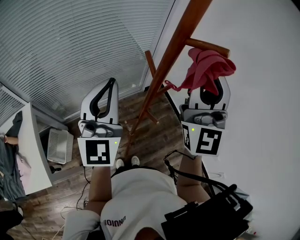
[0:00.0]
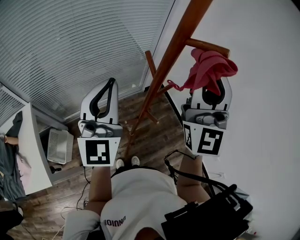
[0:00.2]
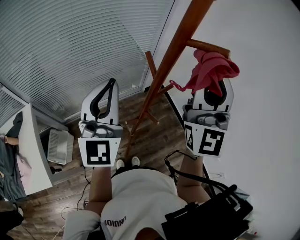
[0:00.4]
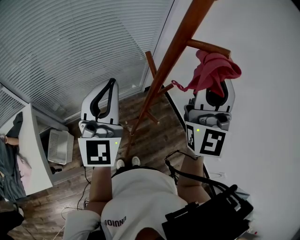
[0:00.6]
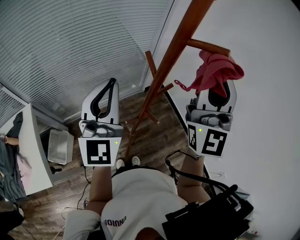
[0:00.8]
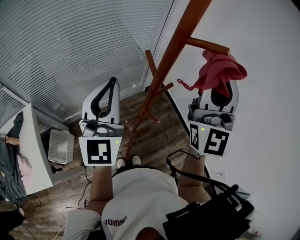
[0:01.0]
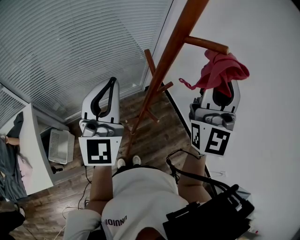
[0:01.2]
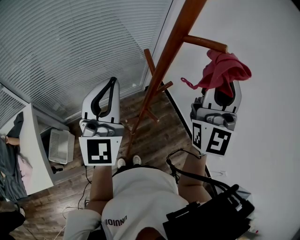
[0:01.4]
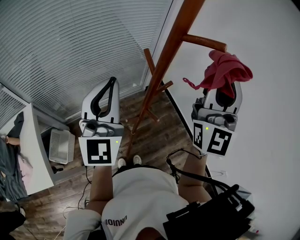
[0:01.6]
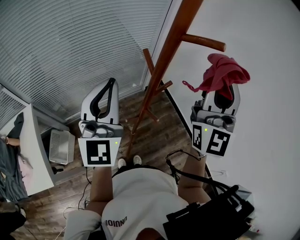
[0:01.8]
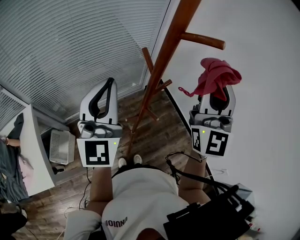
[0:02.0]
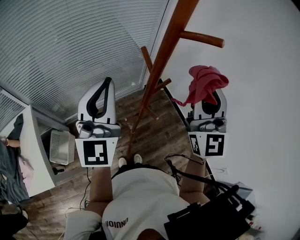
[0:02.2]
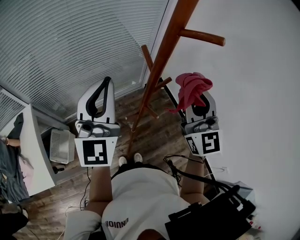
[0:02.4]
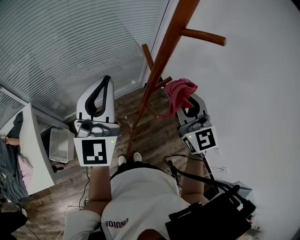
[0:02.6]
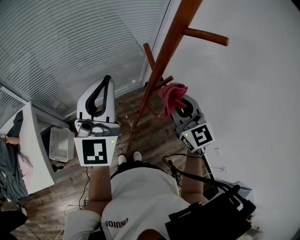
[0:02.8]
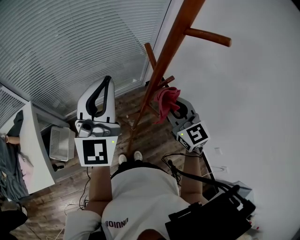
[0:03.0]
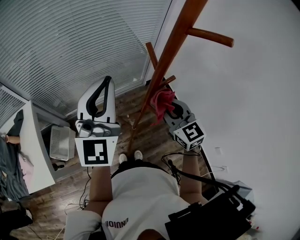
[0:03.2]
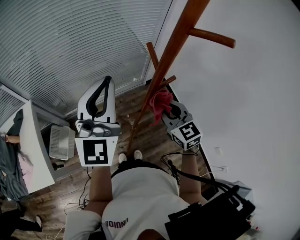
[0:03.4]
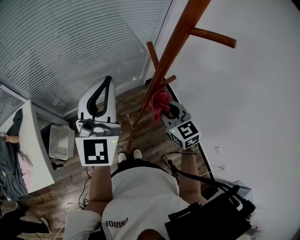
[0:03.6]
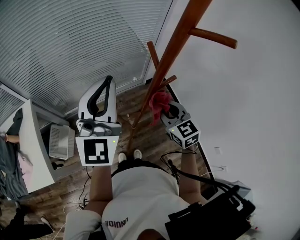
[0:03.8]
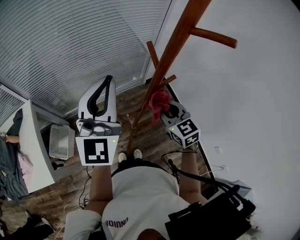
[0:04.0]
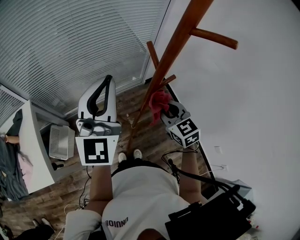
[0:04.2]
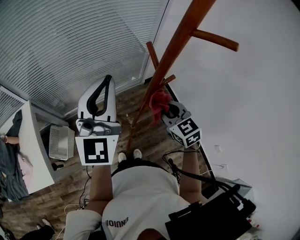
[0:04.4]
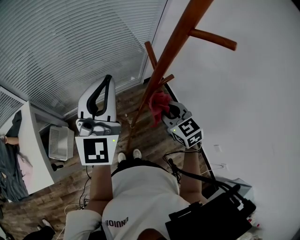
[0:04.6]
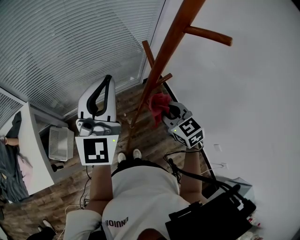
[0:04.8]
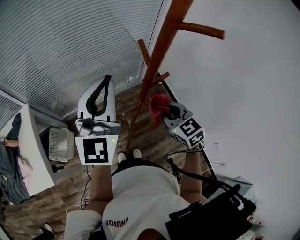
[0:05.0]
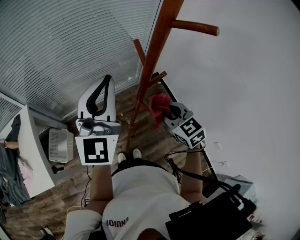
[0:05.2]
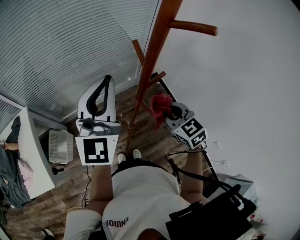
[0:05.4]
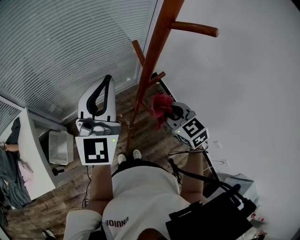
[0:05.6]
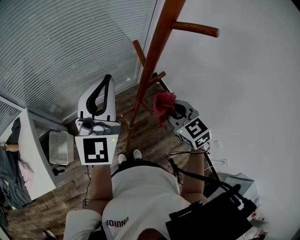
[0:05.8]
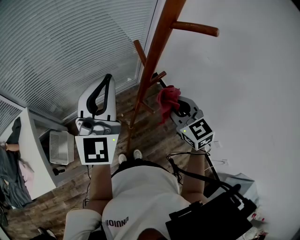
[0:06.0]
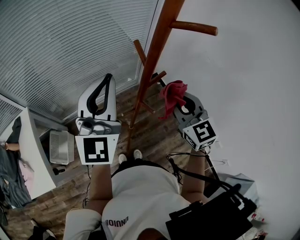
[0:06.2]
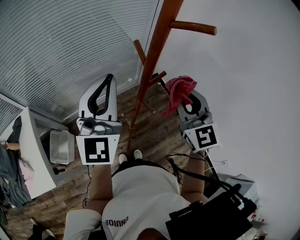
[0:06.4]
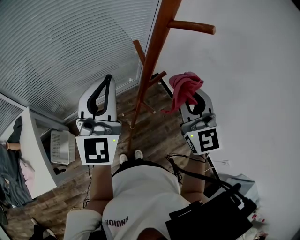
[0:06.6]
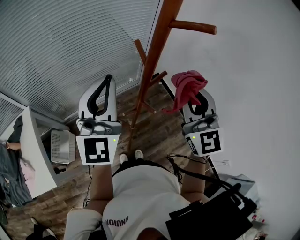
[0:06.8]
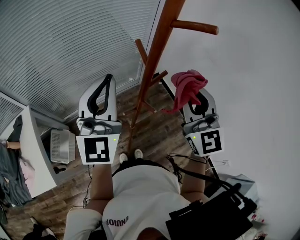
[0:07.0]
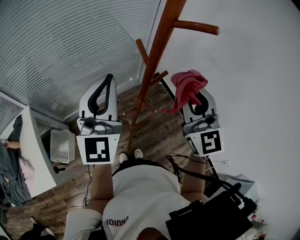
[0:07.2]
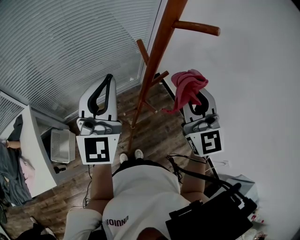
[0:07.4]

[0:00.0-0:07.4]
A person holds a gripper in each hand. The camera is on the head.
0:00.0 to 0:01.4: The grippers move only a little.
0:01.4 to 0:03.0: The right gripper moves downward, approximately 25 cm, and angles its fingers downward, by about 40 degrees.
0:03.0 to 0:04.4: The right gripper heads downward, covering roughly 5 cm.
0:04.4 to 0:06.0: The right gripper goes roughly 5 cm upward.
0:06.0 to 0:07.4: The right gripper shifts roughly 15 cm upward, and turns by about 30 degrees.

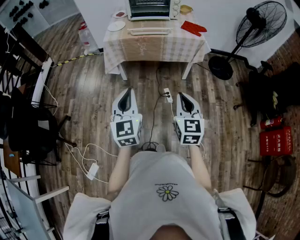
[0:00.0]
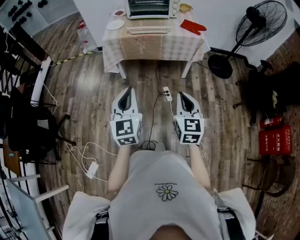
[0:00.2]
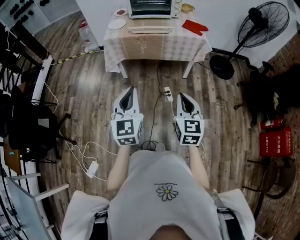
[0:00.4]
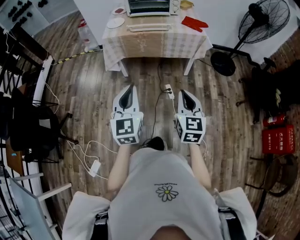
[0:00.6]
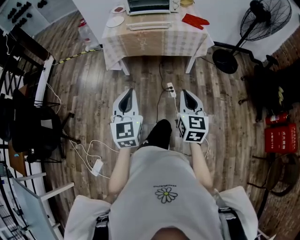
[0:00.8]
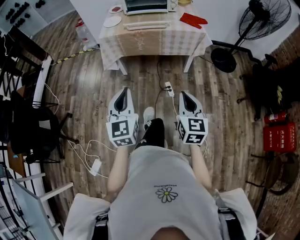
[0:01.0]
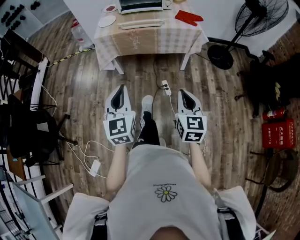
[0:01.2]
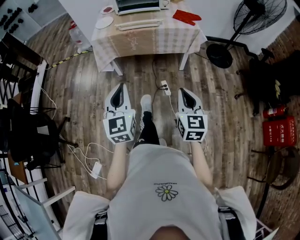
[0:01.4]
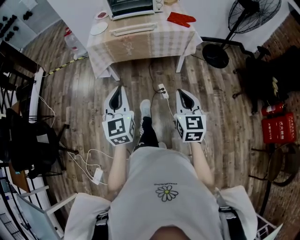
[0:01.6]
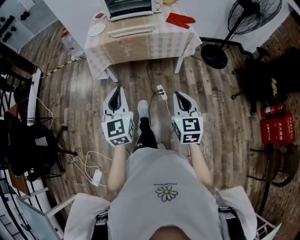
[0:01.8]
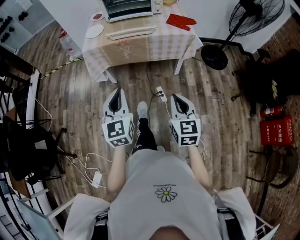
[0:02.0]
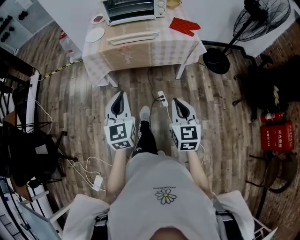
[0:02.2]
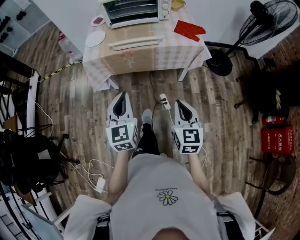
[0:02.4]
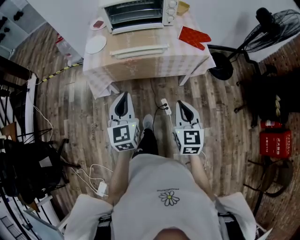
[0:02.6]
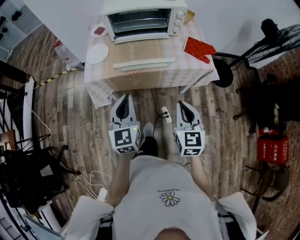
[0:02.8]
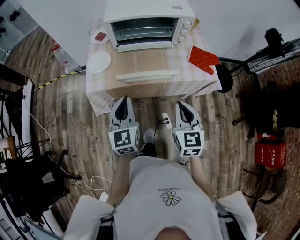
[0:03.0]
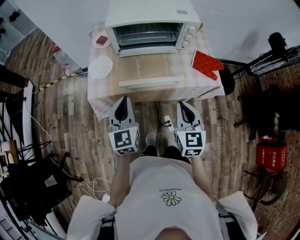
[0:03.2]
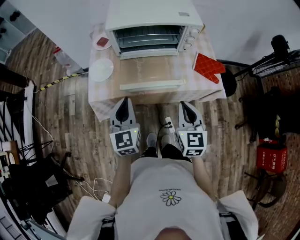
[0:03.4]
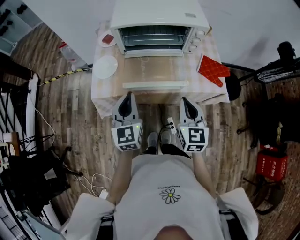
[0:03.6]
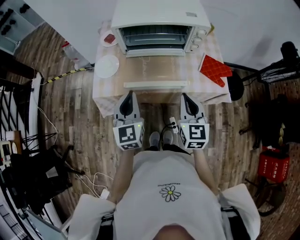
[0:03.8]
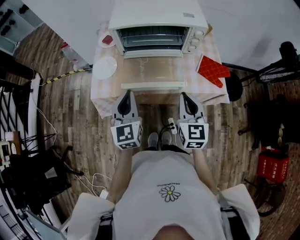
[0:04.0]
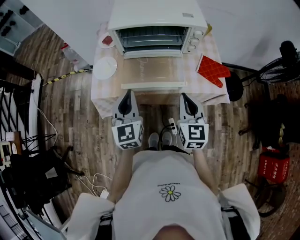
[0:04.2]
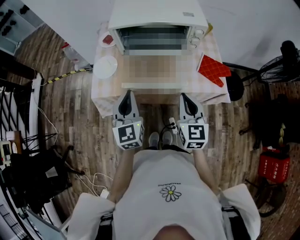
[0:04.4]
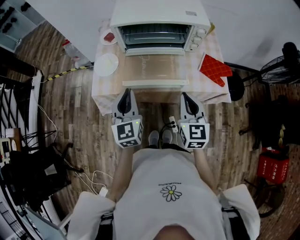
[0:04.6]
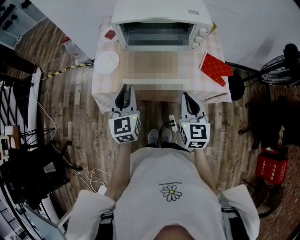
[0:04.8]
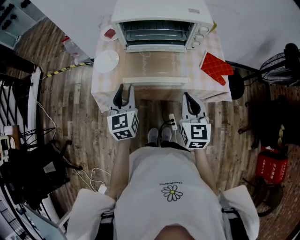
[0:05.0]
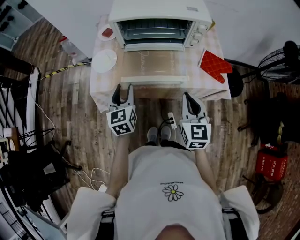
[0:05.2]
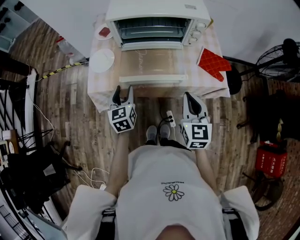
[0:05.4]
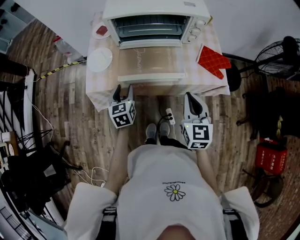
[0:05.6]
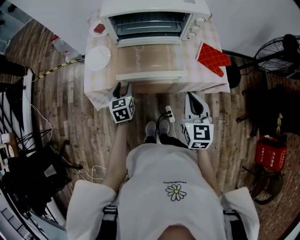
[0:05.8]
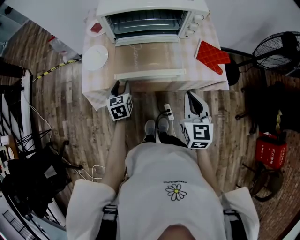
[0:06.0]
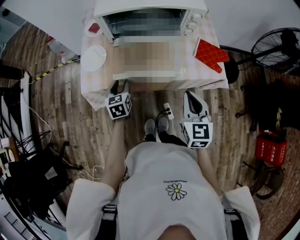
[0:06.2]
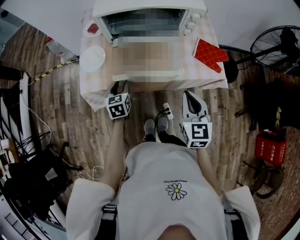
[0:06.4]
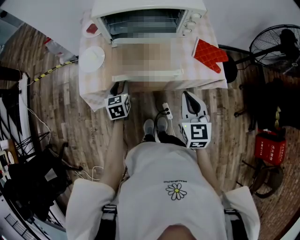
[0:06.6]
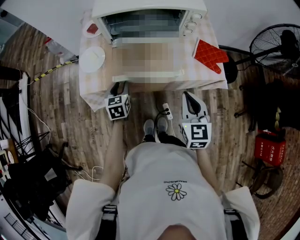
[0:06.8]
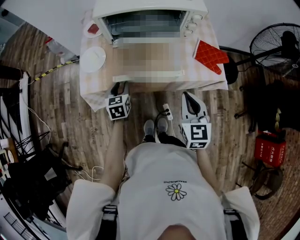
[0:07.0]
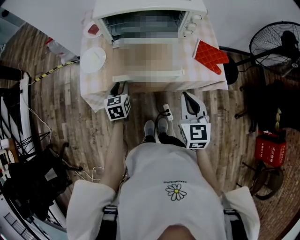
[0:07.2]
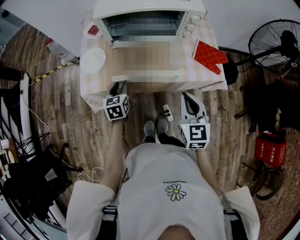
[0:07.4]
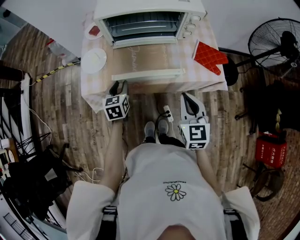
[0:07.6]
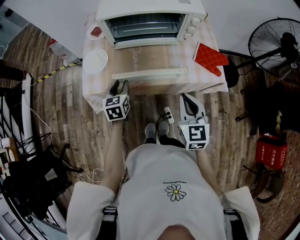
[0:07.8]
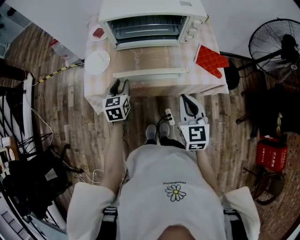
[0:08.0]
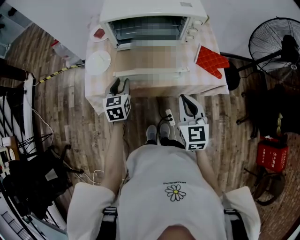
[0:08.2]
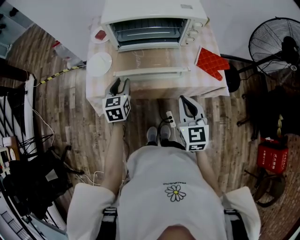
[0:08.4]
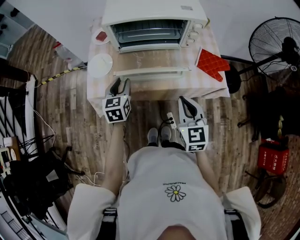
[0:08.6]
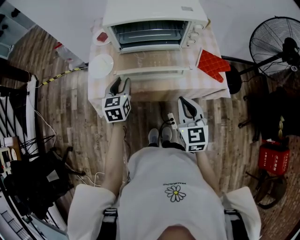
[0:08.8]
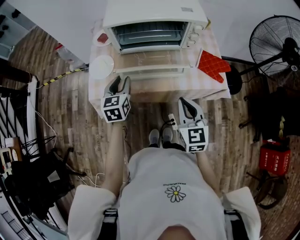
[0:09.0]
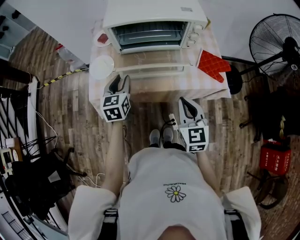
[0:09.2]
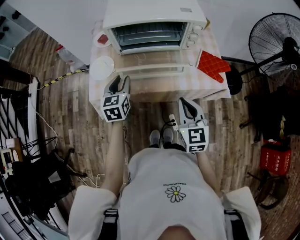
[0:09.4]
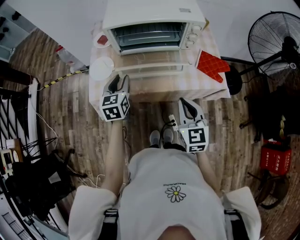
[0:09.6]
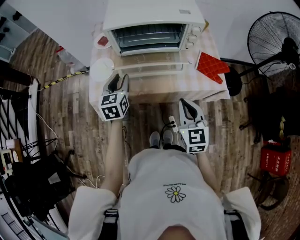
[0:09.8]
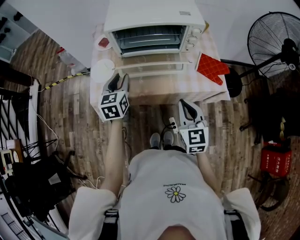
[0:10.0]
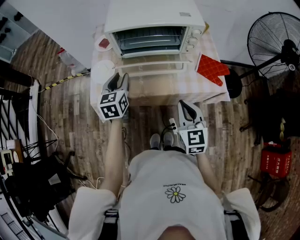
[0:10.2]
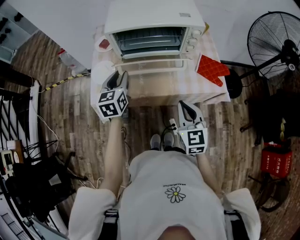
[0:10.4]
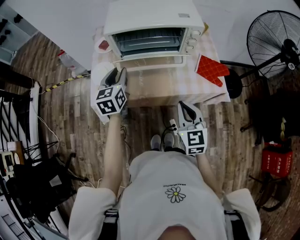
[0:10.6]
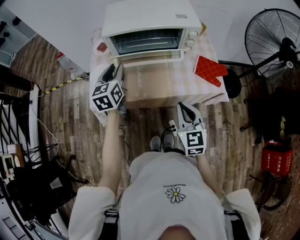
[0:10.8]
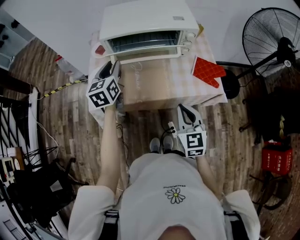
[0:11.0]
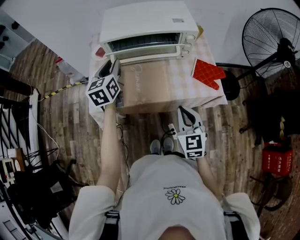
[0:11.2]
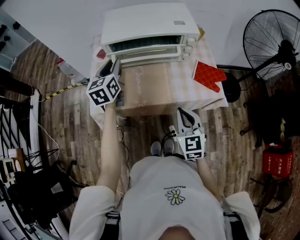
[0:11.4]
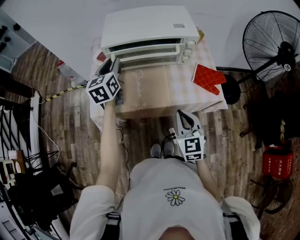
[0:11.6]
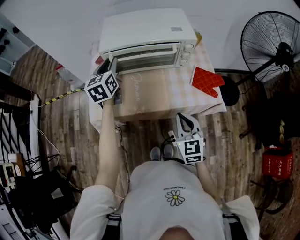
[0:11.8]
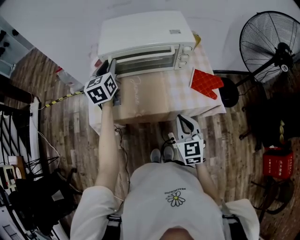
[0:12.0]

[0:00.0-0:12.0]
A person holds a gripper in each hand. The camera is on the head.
0:00.0 to 0:01.6: The right gripper moves about 5 cm; the left gripper moves forward, roughly 5 cm.
0:01.6 to 0:03.0: Both grippers move forward, roughly 40 cm.
0:03.0 to 0:04.4: Both grippers travel together forward, about 10 cm.
0:04.4 to 0:06.0: The left gripper heads downward, covering about 20 cm, rotates roughly 30 degrees, and opens its fingers.
0:06.0 to 0:07.6: The grippers make only small movements.
0:07.6 to 0:09.0: The left gripper goes about 10 cm upward.
0:09.0 to 0:10.4: The left gripper moves approximately 5 cm.
0:10.4 to 0:12.0: The left gripper travels forward and upward by roughly 15 cm.

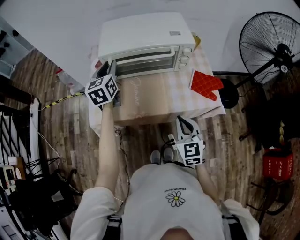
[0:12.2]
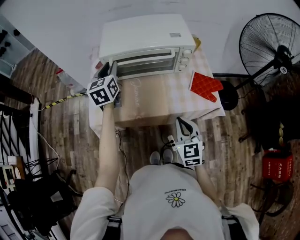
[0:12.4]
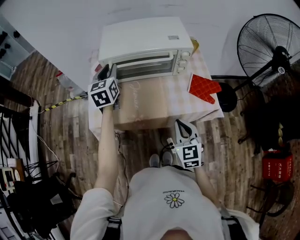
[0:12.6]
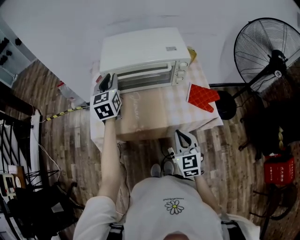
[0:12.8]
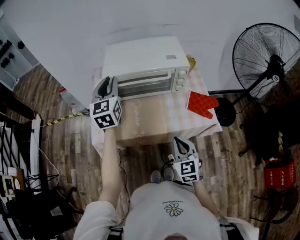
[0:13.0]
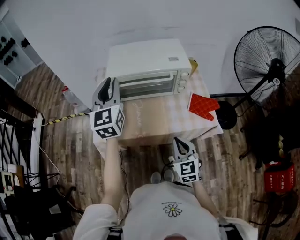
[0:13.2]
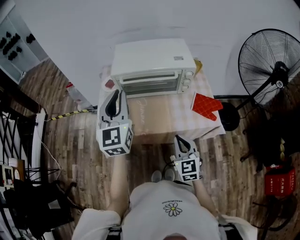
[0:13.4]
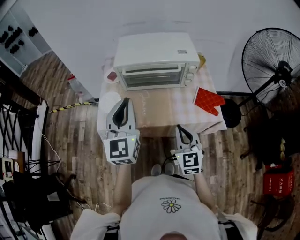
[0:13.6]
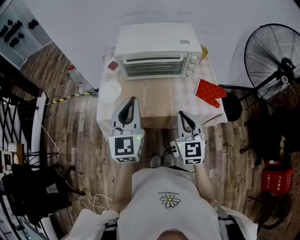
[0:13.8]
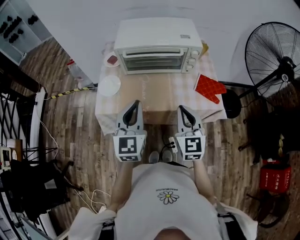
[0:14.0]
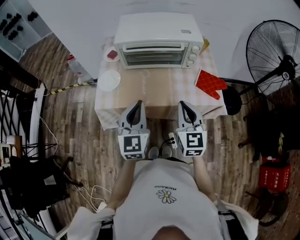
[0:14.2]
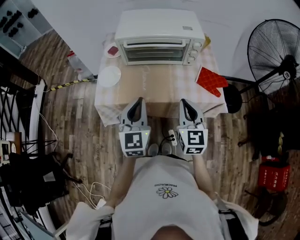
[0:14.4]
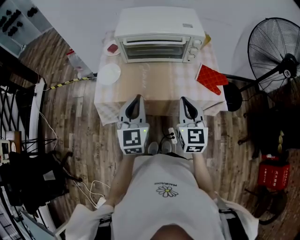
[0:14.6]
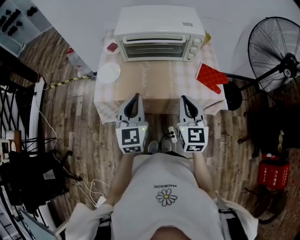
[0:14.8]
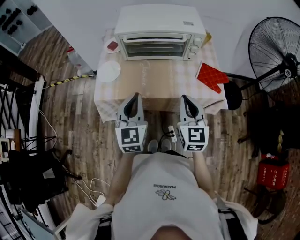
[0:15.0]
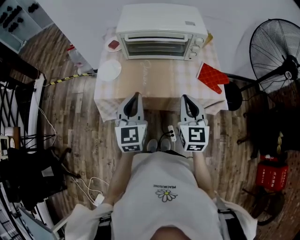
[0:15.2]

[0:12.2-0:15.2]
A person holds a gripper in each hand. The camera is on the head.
0:12.2 to 0:13.8: The left gripper is displaced backward by roughly 25 cm, and closes up; the right gripper goes roughly 5 cm upward.
0:13.8 to 0:15.2: The left gripper goes roughly 10 cm downward.

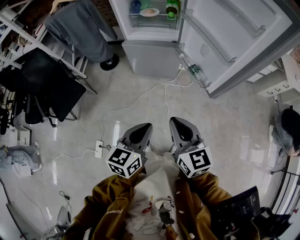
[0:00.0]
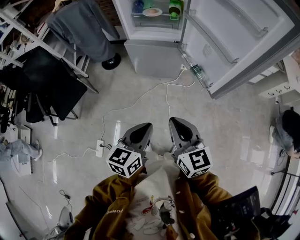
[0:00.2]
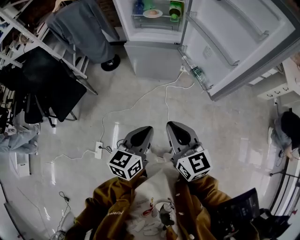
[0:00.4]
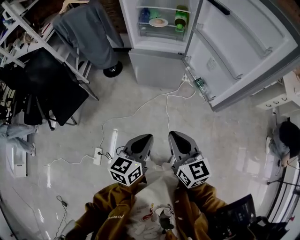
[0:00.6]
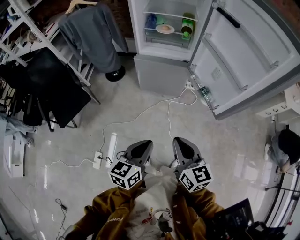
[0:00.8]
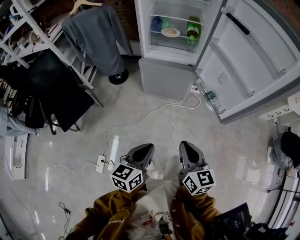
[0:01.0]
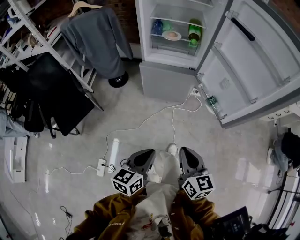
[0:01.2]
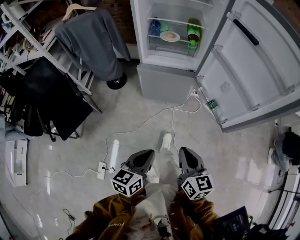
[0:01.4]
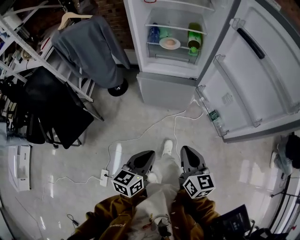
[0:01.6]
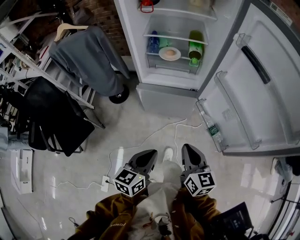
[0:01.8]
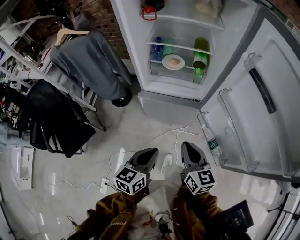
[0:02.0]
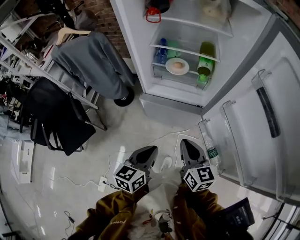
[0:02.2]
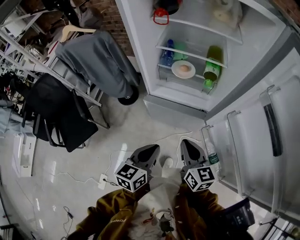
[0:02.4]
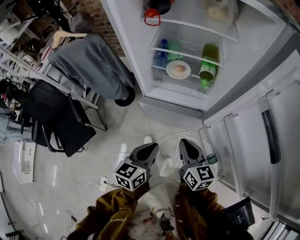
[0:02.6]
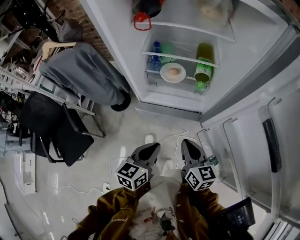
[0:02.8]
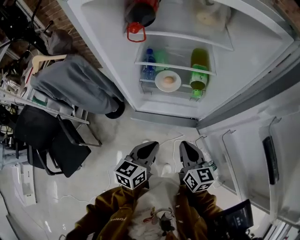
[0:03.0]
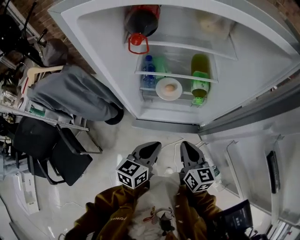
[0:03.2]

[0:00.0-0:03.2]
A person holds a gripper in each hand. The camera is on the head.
0:00.0 to 0:01.6: The right gripper moves roughly 15 cm.
0:01.6 to 0:03.2: The right gripper shifts by about 40 cm.
